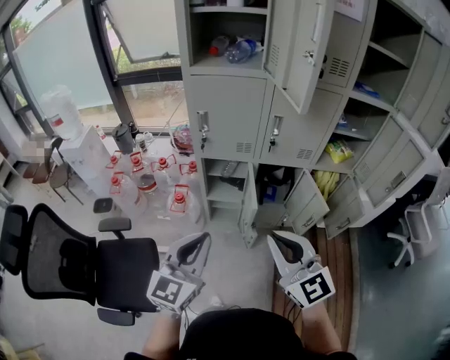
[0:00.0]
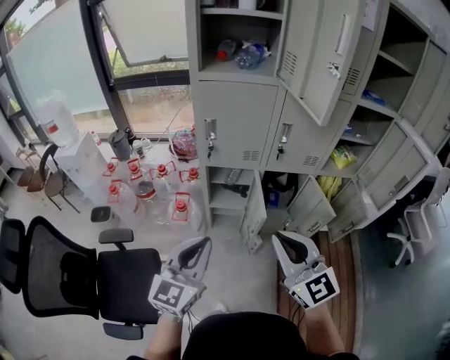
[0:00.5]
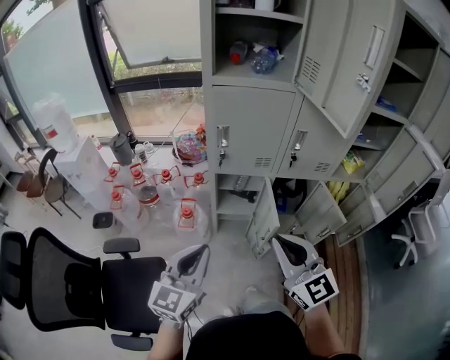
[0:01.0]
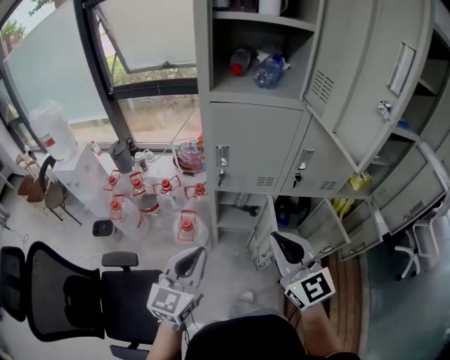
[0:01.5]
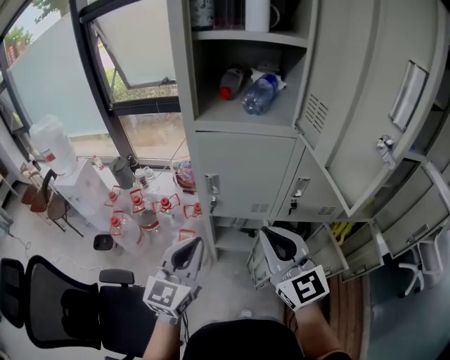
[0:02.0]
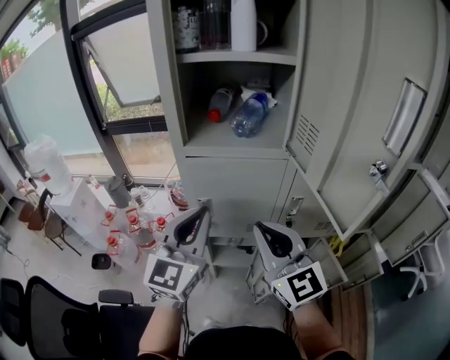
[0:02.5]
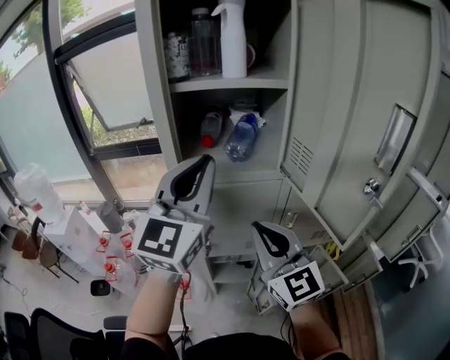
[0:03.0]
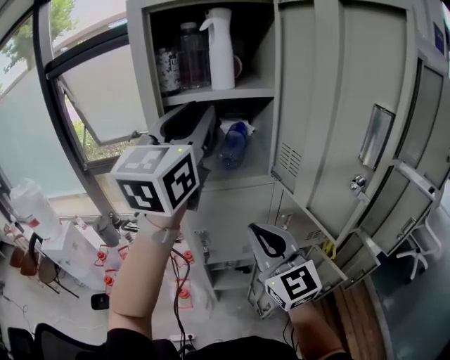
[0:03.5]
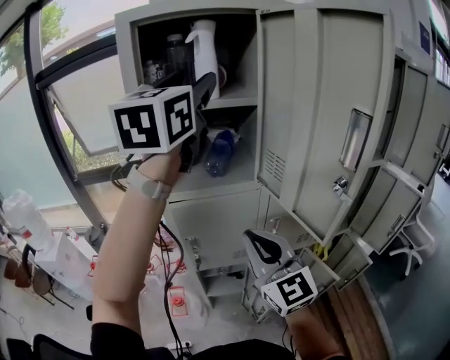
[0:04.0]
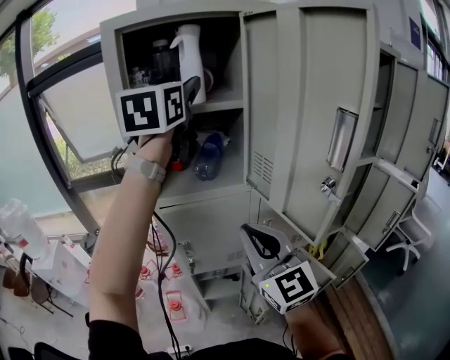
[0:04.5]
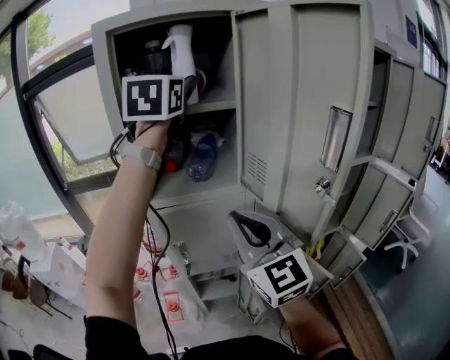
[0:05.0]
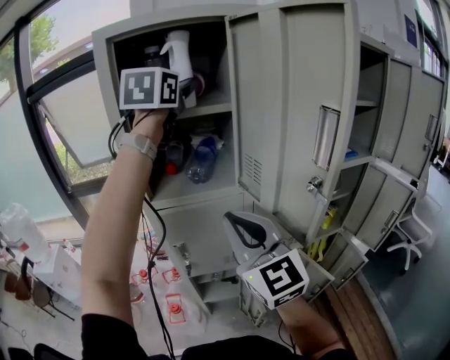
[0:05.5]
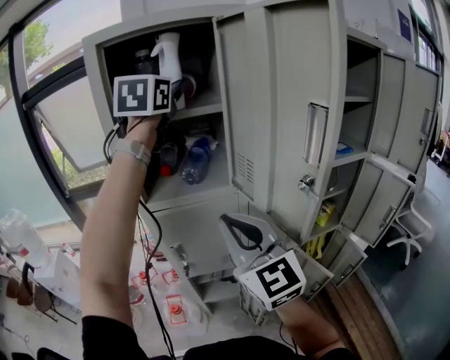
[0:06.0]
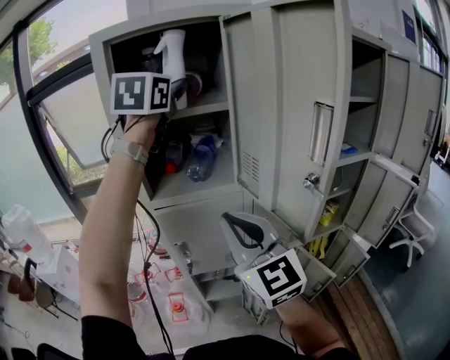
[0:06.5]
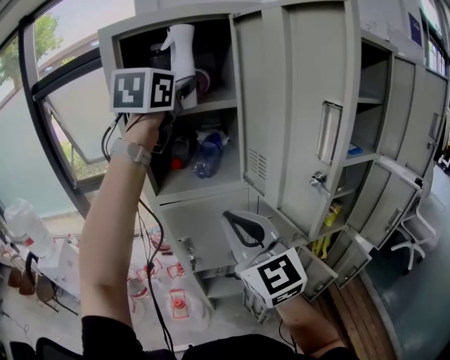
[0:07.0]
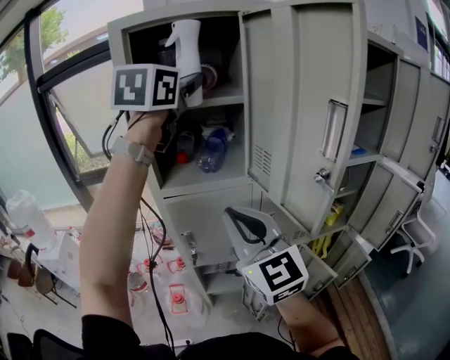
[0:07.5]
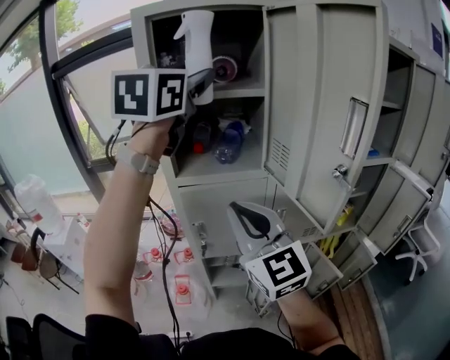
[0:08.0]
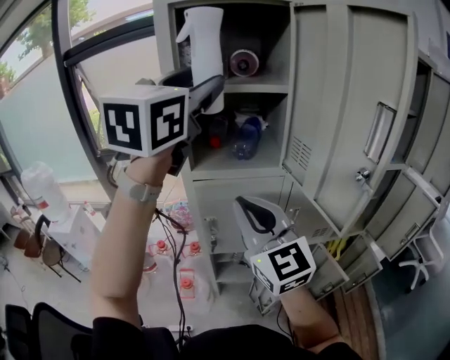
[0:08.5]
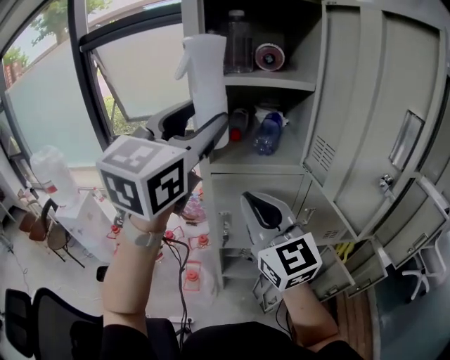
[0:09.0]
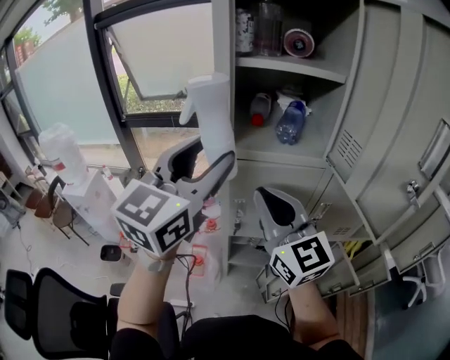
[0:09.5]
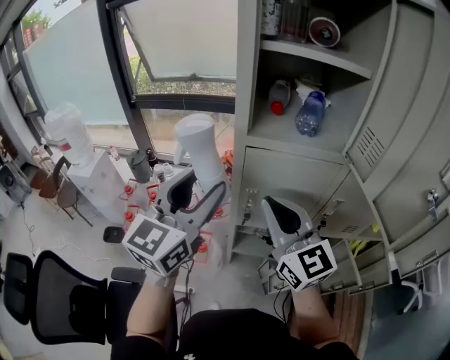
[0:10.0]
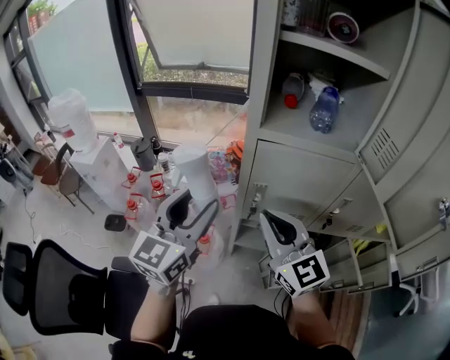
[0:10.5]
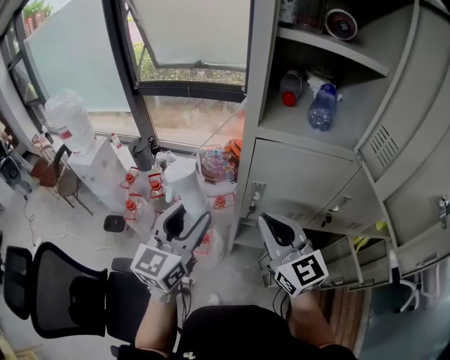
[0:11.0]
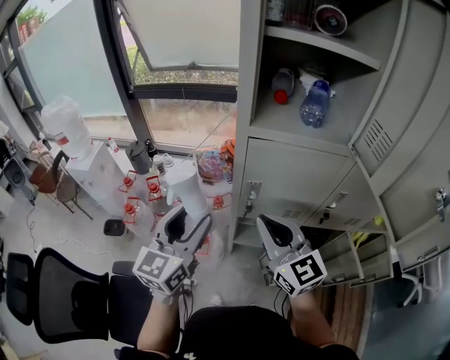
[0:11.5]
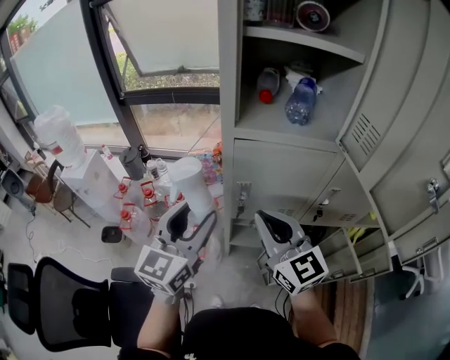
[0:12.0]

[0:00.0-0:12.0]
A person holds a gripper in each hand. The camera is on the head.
0:00.0 to 0:02.0: Both grippers travel together forward, roughly 25 cm.
0:02.0 to 0:04.0: The right gripper shifts some 10 cm upward and forward; the left gripper heads upward and forward, covering approximately 50 cm, changes its angle by roughly 20 degrees, and opens up.
0:04.0 to 0:06.0: The left gripper travels forward by roughly 10 cm, while the right gripper moves upward, approximately 5 cm.
0:06.0 to 0:08.0: The left gripper is displaced backward by some 10 cm.
0:08.0 to 0:10.0: The right gripper heads downward and to the left, covering approximately 10 cm, while the left gripper heads downward, to the left and backward, covering approximately 35 cm.
0:10.0 to 0:12.0: The left gripper heads downward, covering roughly 10 cm. Meanwhile the right gripper shifts some 5 cm downward.

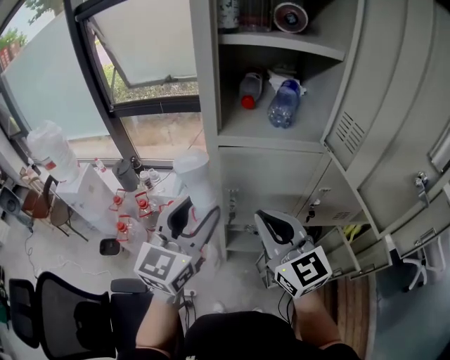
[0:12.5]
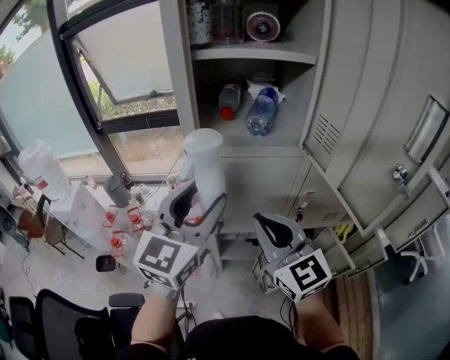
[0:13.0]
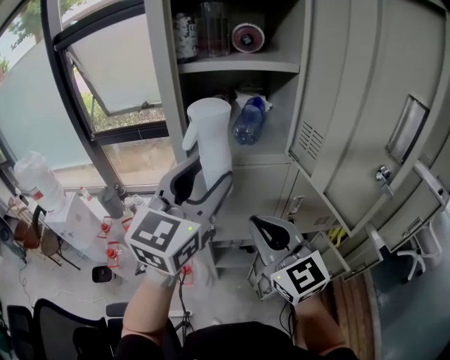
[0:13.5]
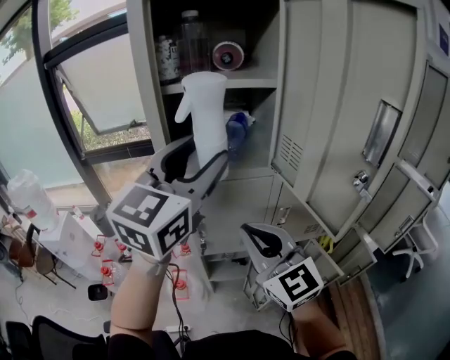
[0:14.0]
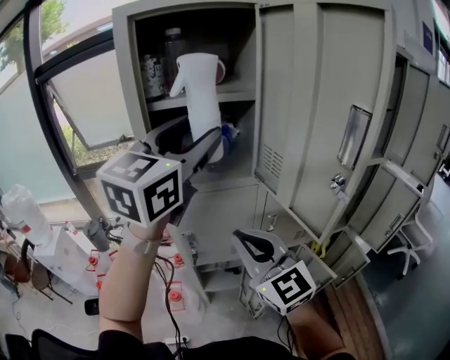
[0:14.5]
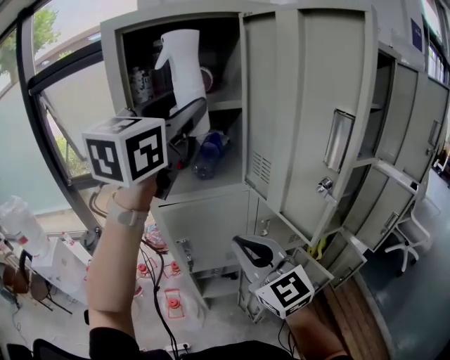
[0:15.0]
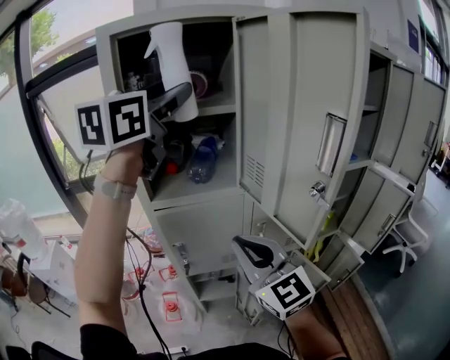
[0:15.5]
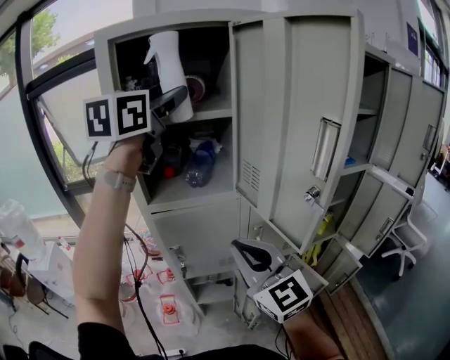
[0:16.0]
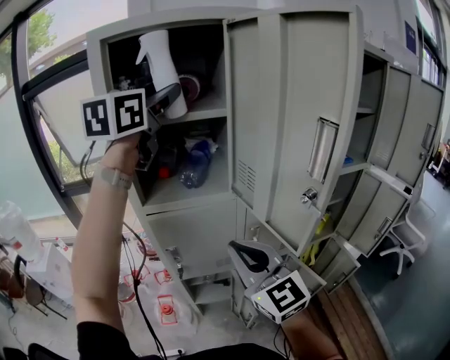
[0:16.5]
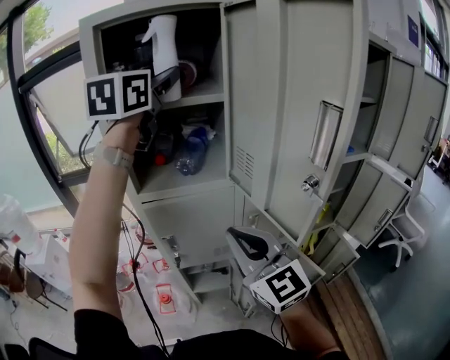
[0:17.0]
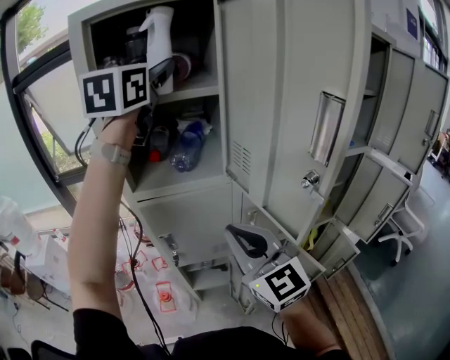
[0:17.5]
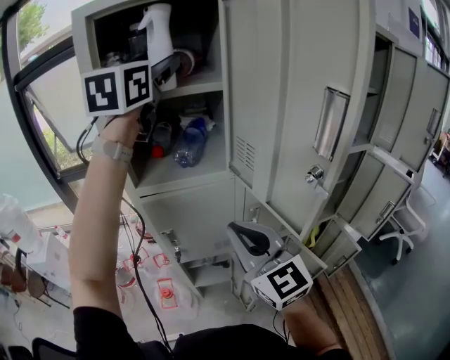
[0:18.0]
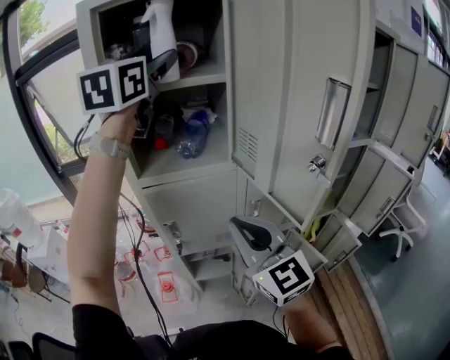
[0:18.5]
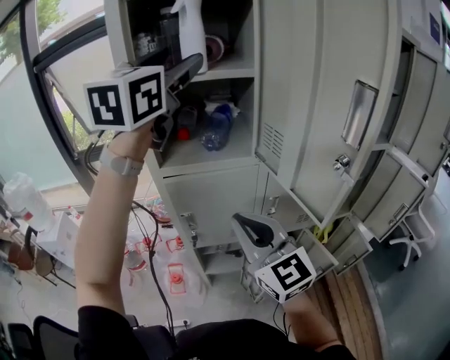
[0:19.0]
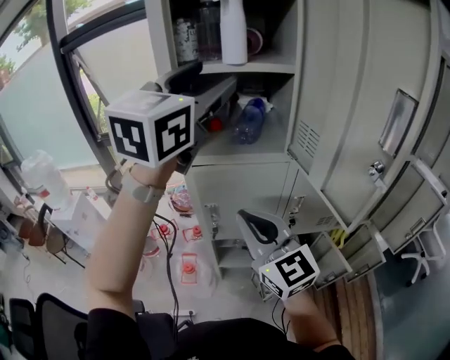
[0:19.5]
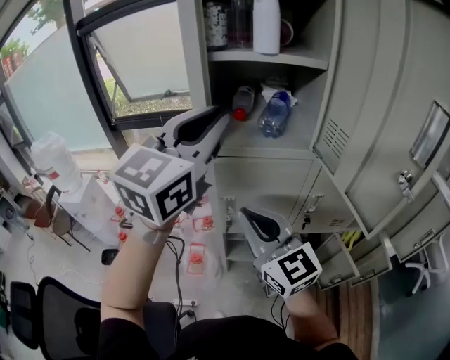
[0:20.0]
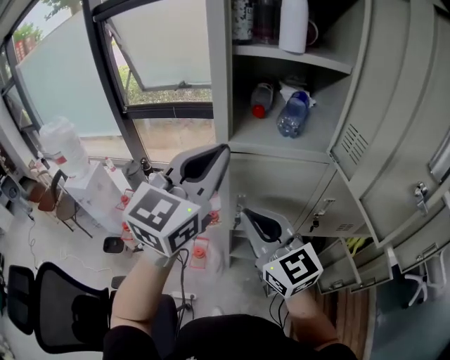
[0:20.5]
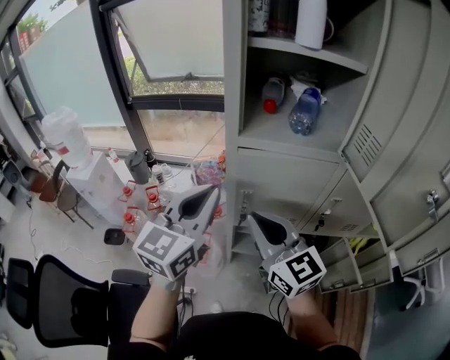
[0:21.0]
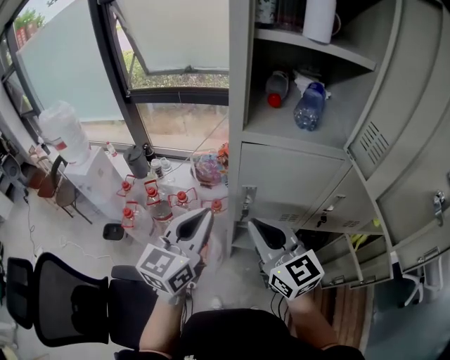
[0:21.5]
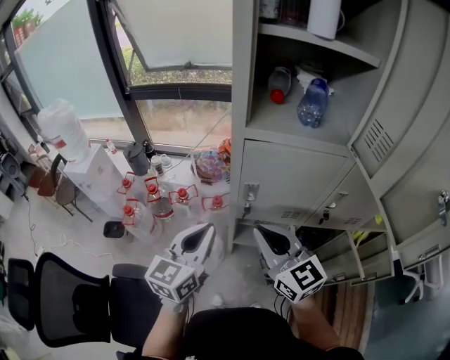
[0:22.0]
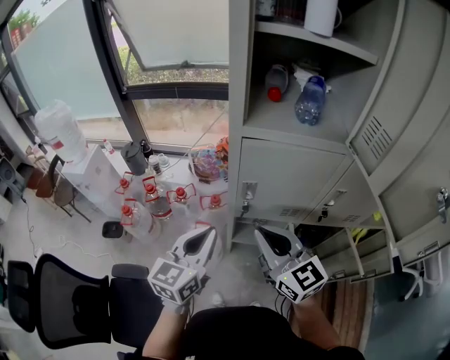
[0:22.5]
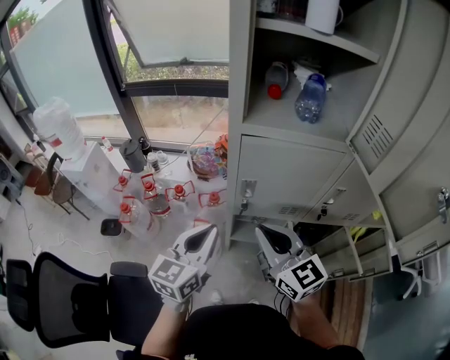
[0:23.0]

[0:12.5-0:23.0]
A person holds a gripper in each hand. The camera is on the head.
0:12.5 to 0:14.5: The right gripper moves upward and to the right, roughly 10 cm. Meanwhile the left gripper moves upward and to the right, approximately 30 cm, and turns by roughly 20 degrees.
0:14.5 to 0:16.5: The left gripper moves forward and upward, some 15 cm.
0:16.5 to 0:19.0: The grippers move only a little.
0:19.0 to 0:21.0: The left gripper goes roughly 35 cm downward and to the left, and closes its fingers. Meanwhile the right gripper goes roughly 15 cm to the left and downward.
0:21.0 to 0:23.0: The right gripper is displaced downward by about 5 cm. The left gripper moves downward, about 15 cm.

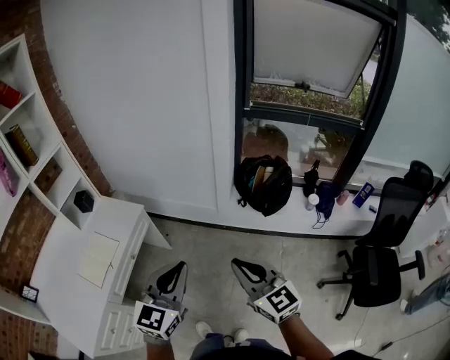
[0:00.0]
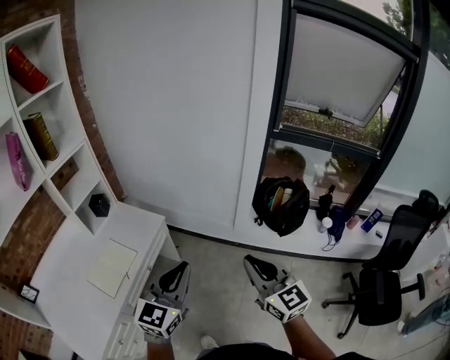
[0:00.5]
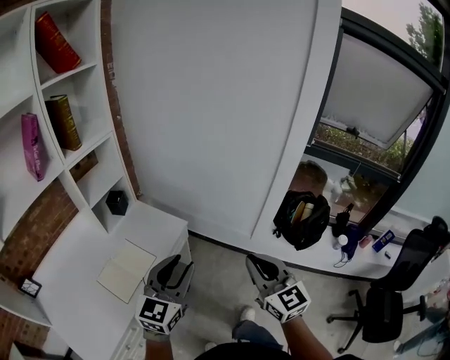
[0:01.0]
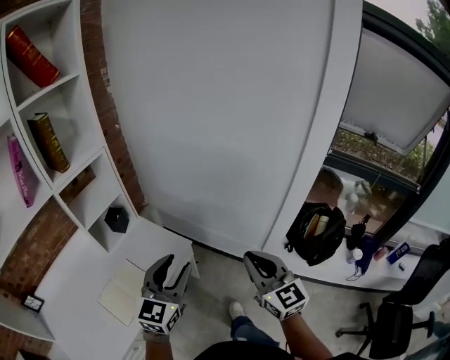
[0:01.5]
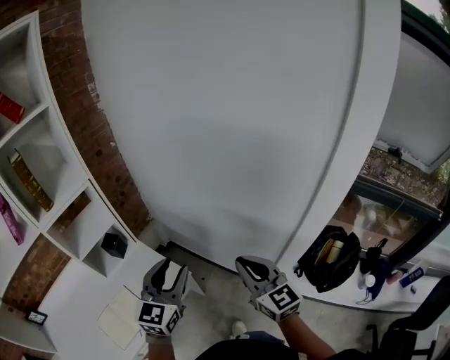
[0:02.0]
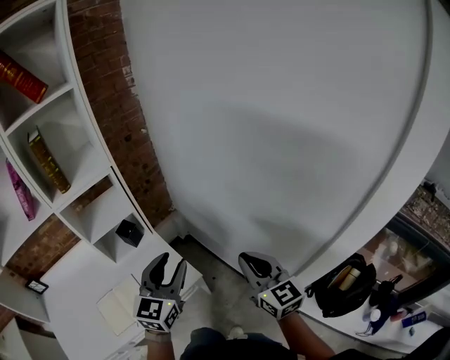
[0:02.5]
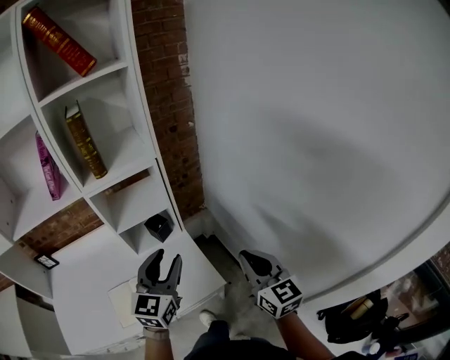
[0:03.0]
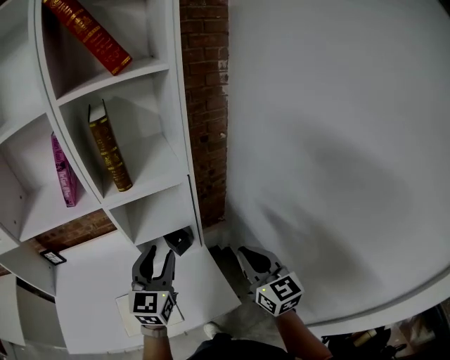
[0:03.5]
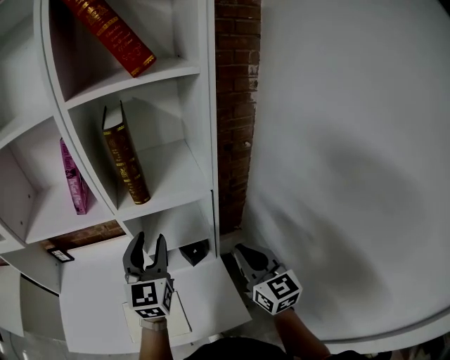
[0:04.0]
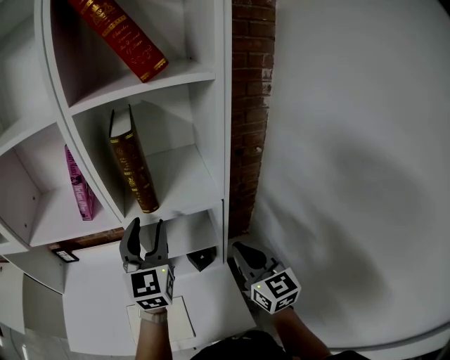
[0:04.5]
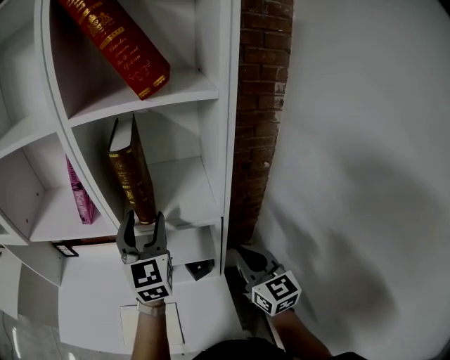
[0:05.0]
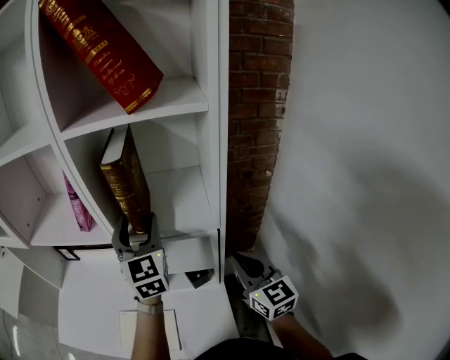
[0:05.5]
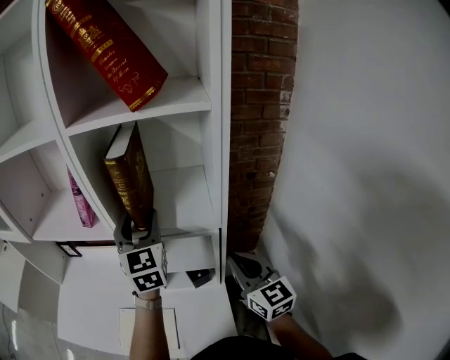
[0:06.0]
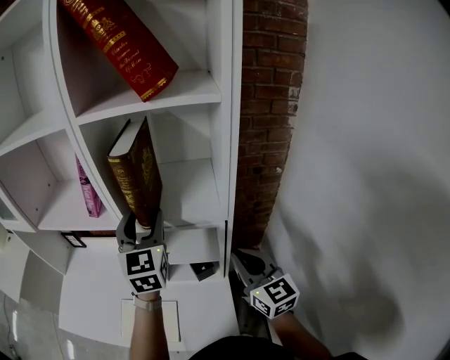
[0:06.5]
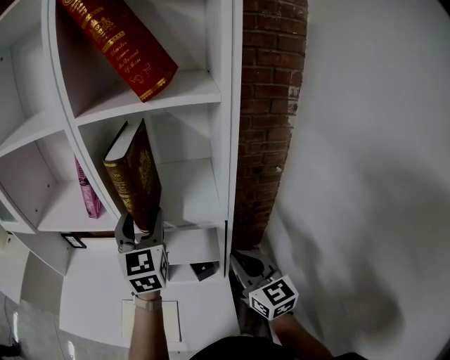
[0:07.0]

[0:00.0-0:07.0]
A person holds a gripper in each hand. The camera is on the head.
0:00.0 to 0:02.0: The two grippers travel together, forward, about 50 cm. The left gripper swivels some 20 degrees, and opens up.
0:02.0 to 0:03.5: The right gripper shifts by approximately 35 cm, and rotates approximately 30 degrees. The left gripper shifts by approximately 30 cm, and changes its angle by about 40 degrees.
0:03.5 to 0:05.0: The right gripper goes about 15 cm forward, while the left gripper travels forward and upward by roughly 20 cm, and changes its angle by approximately 30 degrees.
0:05.0 to 0:07.0: The grippers make only small movements.
